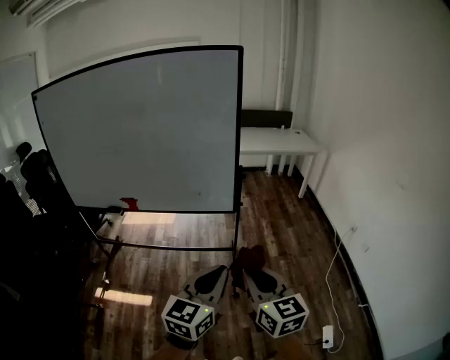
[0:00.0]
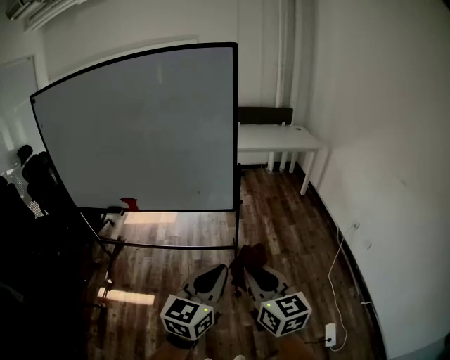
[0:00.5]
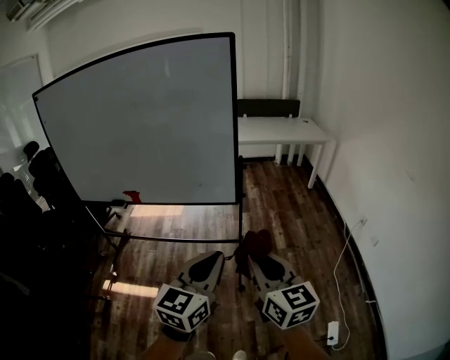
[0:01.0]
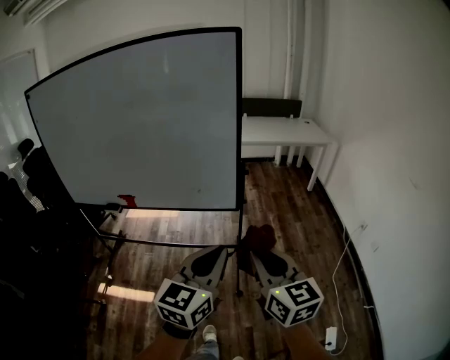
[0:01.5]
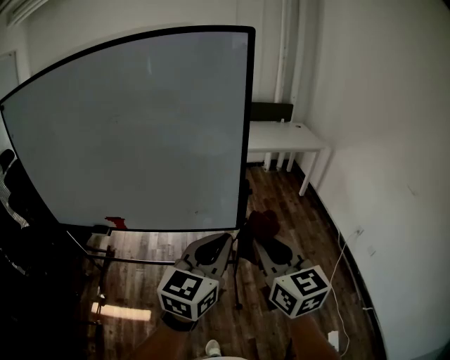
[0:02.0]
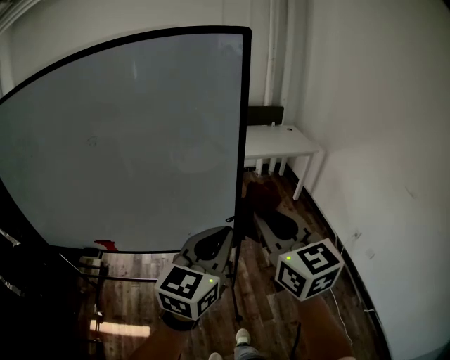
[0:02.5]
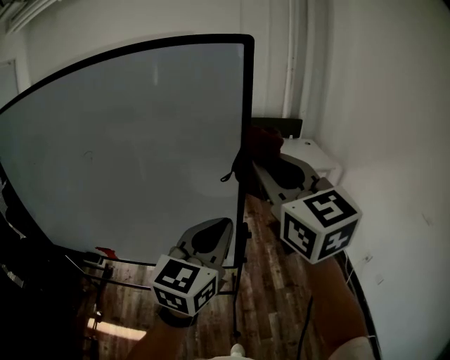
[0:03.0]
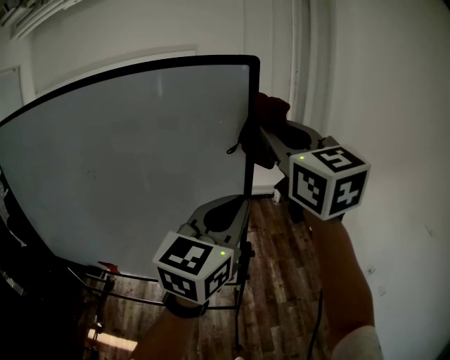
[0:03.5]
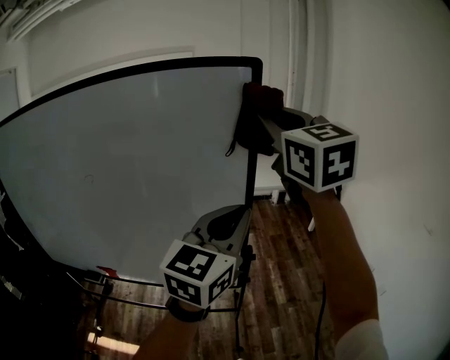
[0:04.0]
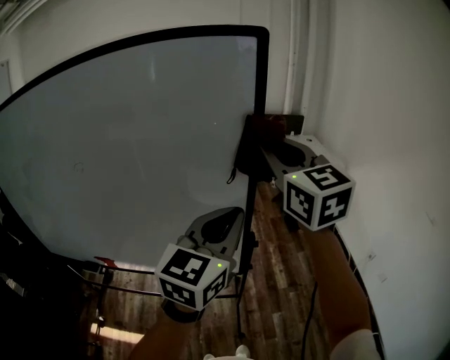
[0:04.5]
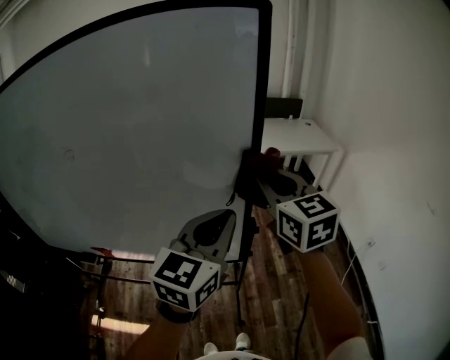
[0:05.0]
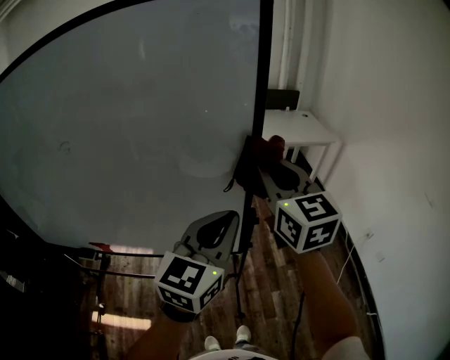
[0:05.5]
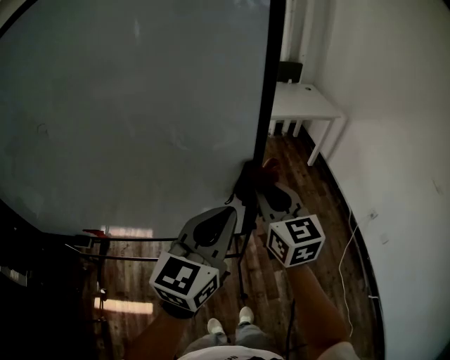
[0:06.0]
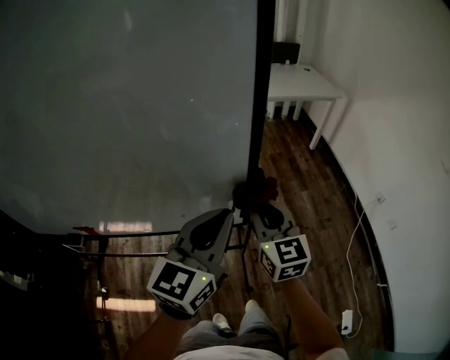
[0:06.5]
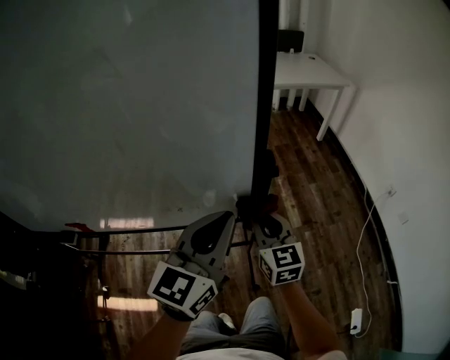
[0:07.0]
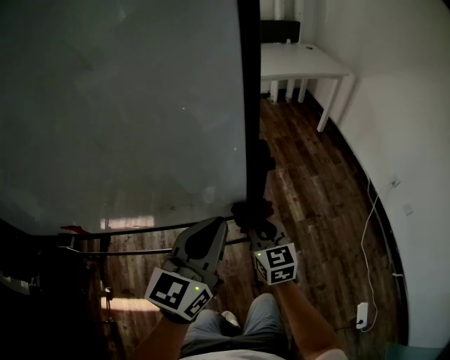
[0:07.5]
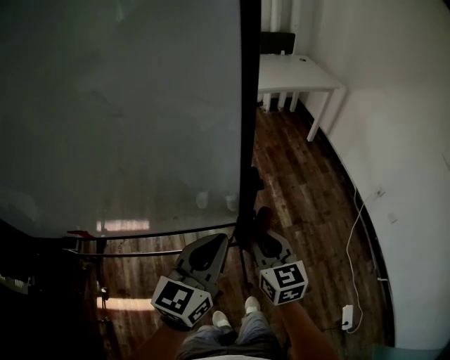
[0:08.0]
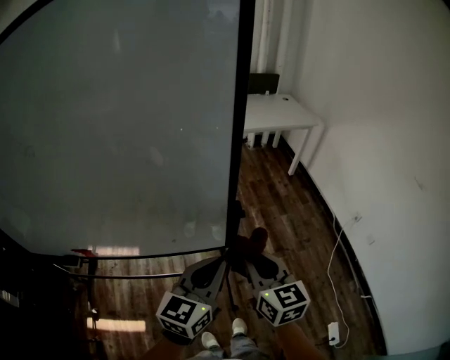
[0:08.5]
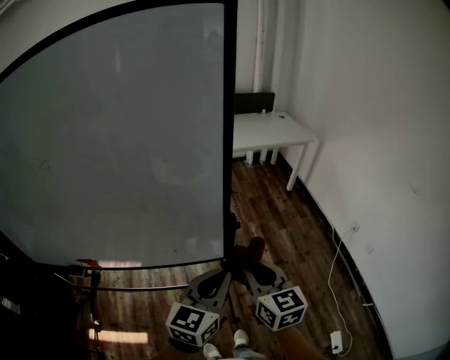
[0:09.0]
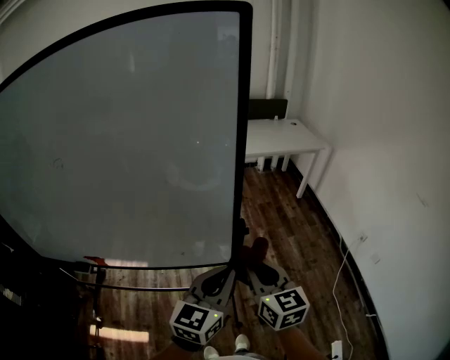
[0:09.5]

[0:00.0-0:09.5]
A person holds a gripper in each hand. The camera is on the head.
0:00.0 to 0:02.0: The grippers both shift forward by some 25 cm.
0:02.0 to 0:04.0: The right gripper is displaced forward and upward by some 40 cm, and turns by approximately 20 degrees. The left gripper shifts approximately 30 cm forward and upward.
0:04.0 to 0:05.5: The right gripper shifts some 20 cm downward. The left gripper is displaced downward by approximately 10 cm.
0:05.5 to 0:07.5: The right gripper moves downward, about 50 cm. The left gripper moves downward, roughly 25 cm.
0:07.5 to 0:09.5: The right gripper is displaced upward and backward by roughly 30 cm. Meanwhile the left gripper heads upward and backward, covering roughly 20 cm.

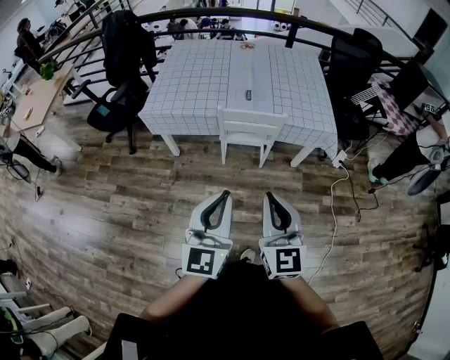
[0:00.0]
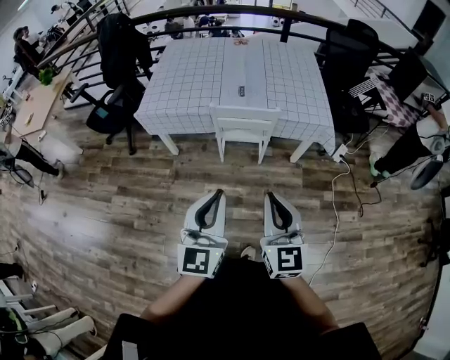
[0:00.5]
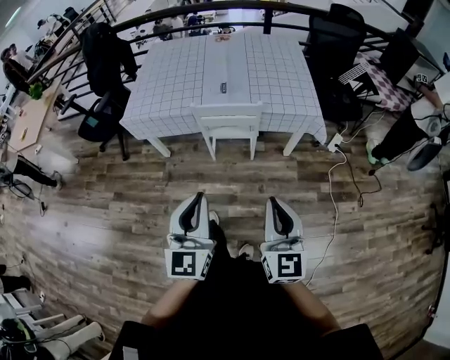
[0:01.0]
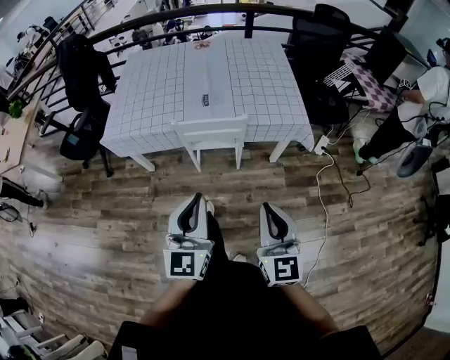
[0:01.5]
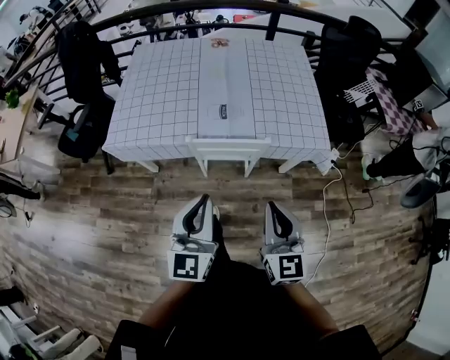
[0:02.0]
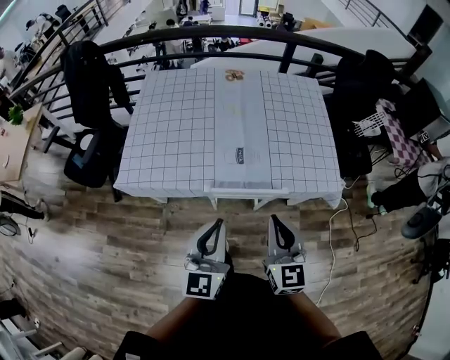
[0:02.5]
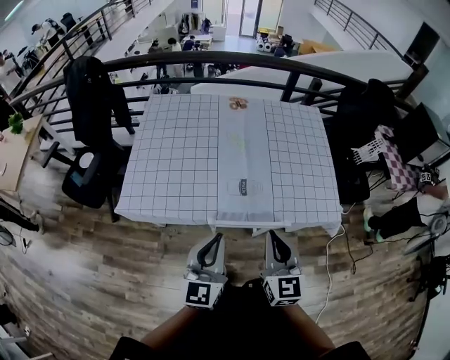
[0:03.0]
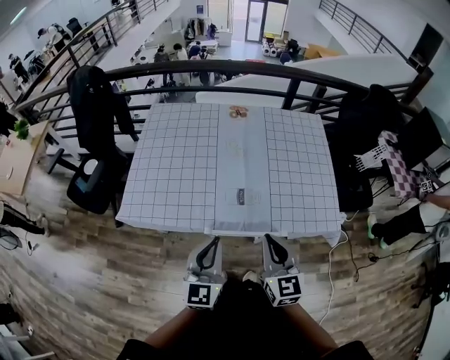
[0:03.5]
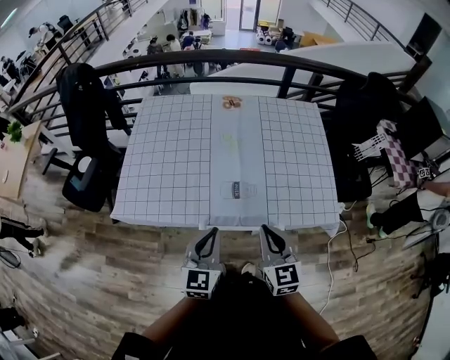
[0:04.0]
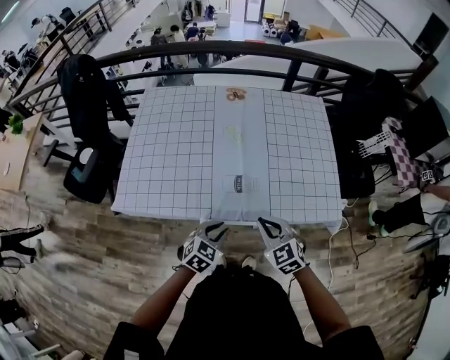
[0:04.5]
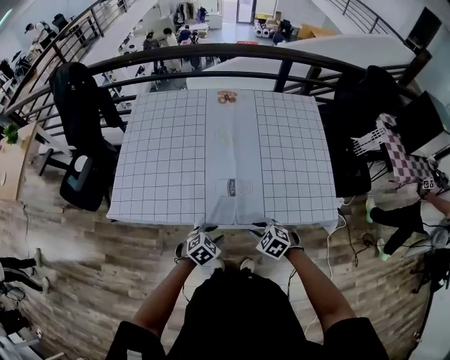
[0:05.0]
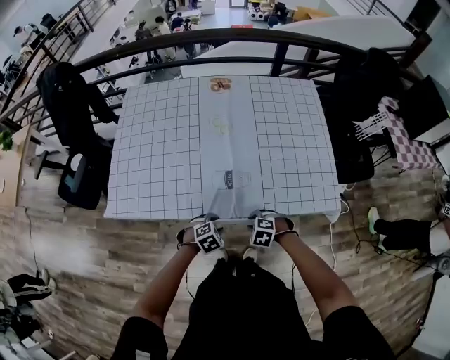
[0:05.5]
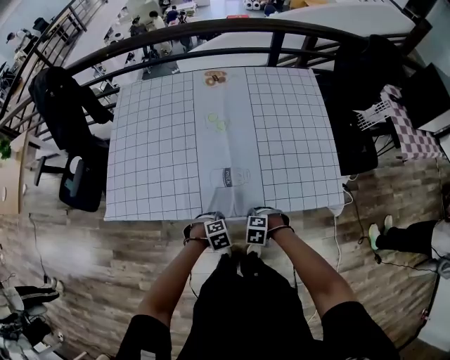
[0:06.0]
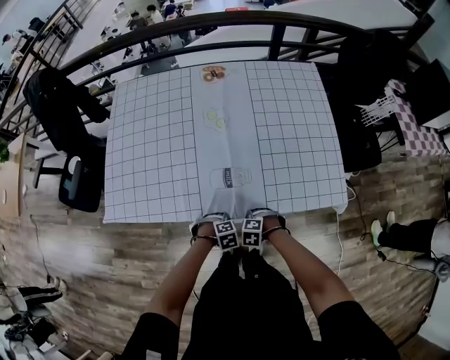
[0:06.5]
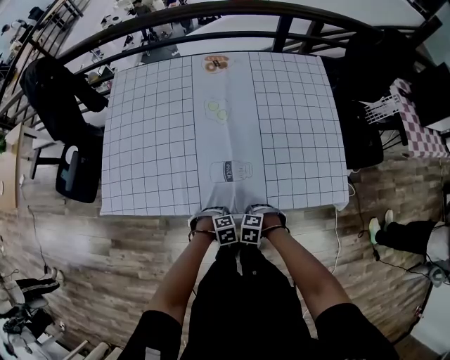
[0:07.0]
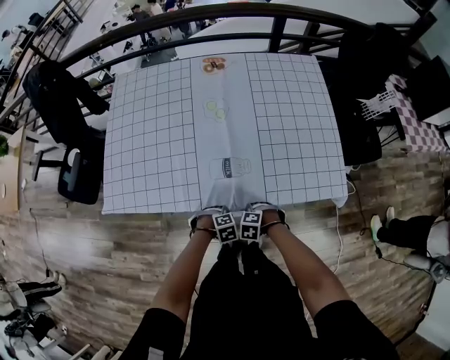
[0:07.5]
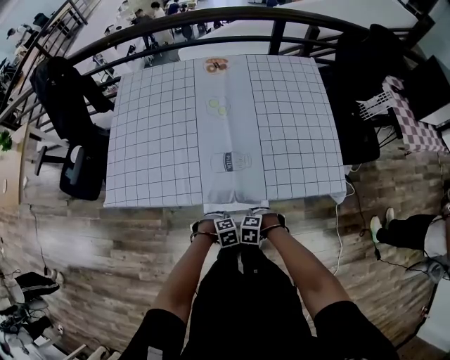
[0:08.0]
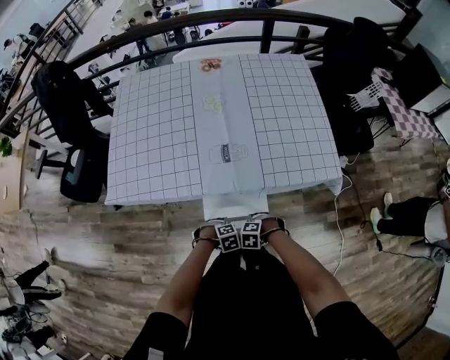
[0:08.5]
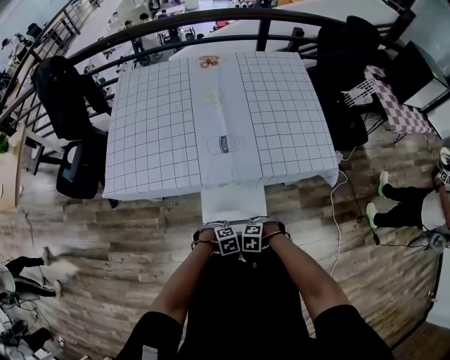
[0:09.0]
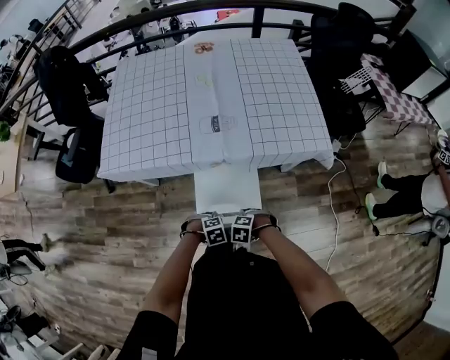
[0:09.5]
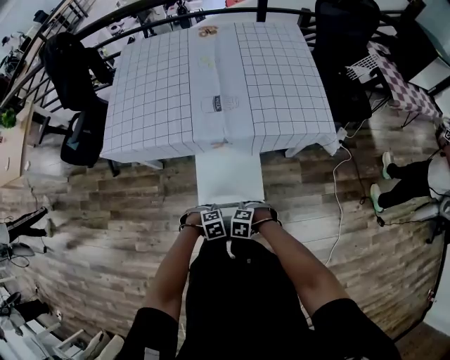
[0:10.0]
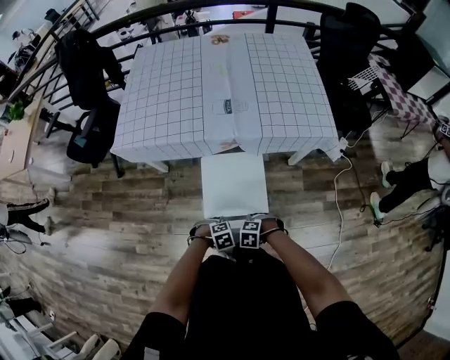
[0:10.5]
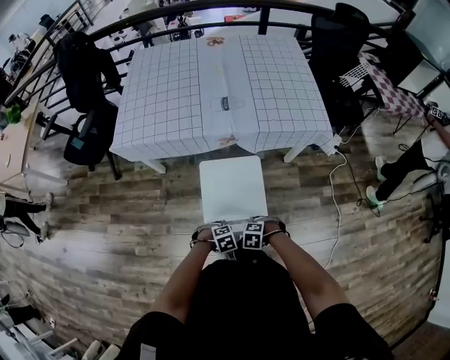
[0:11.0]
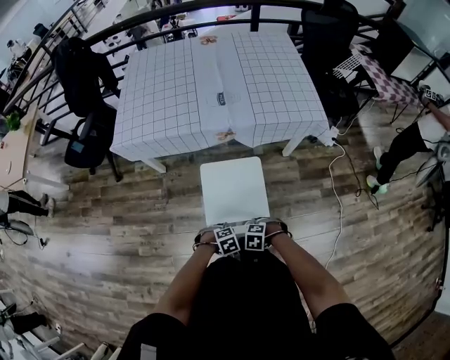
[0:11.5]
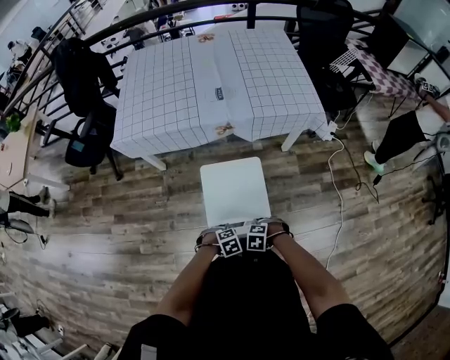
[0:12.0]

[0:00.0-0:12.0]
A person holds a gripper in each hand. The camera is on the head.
0:00.0 to 0:02.0: Both grippers move forward, approximately 25 cm.
0:02.0 to 0:04.0: Both grippers travel together forward, approximately 25 cm.
0:04.0 to 0:06.0: The grippers both shift downward by about 30 cm. The right gripper tips its fingers downward by about 60 degrees. Meanwhile the left gripper tilts its fingers some 60 degrees downward, and opens its fingers.
0:06.0 to 0:08.0: The right gripper shifts by approximately 10 cm, while the left gripper changes place by about 10 cm.
0:08.0 to 0:10.0: The left gripper shifts by approximately 25 cm; the right gripper shifts by some 25 cm.
0:10.0 to 0:12.0: The right gripper changes place by roughly 20 cm; the left gripper moves some 20 cm.

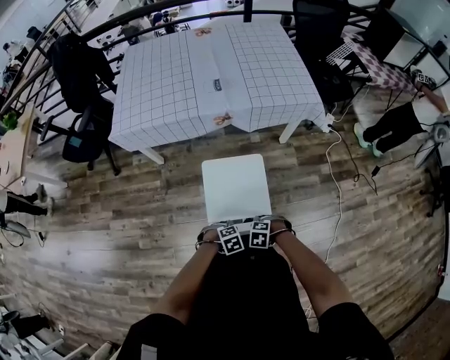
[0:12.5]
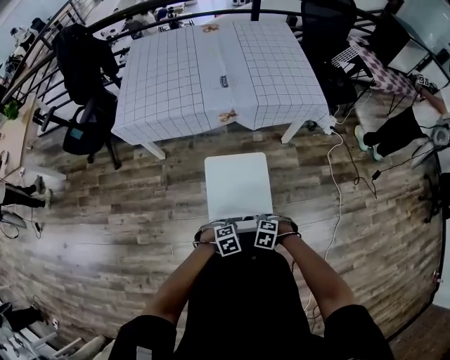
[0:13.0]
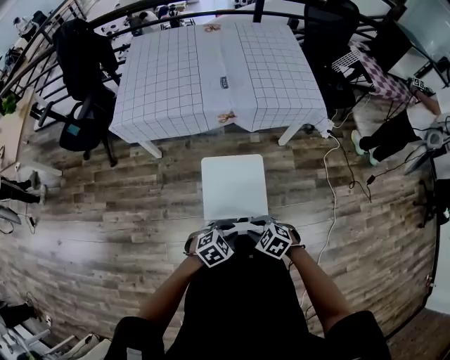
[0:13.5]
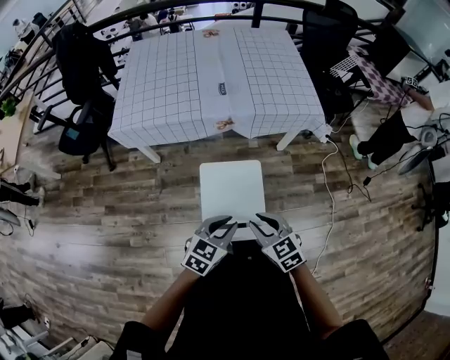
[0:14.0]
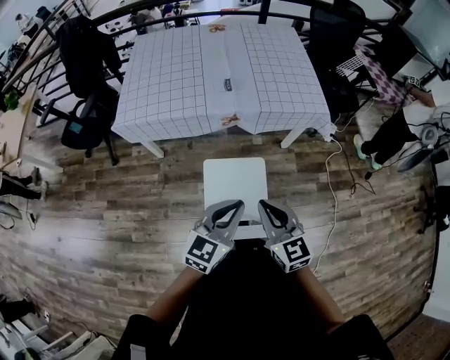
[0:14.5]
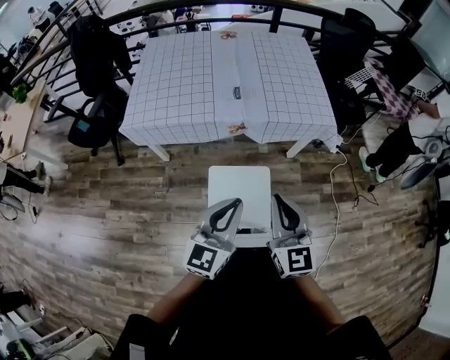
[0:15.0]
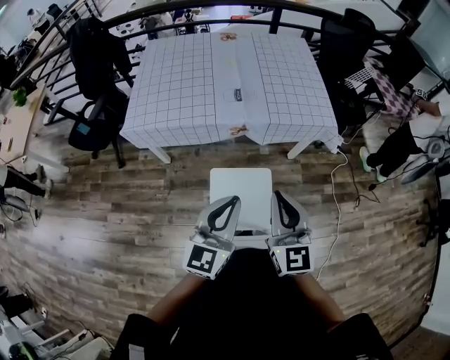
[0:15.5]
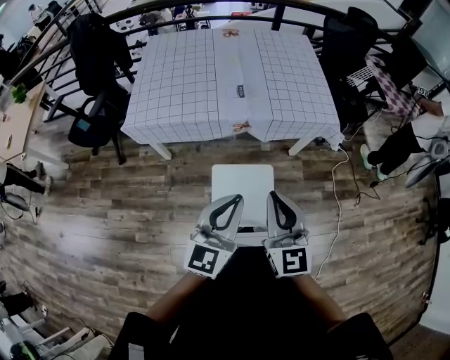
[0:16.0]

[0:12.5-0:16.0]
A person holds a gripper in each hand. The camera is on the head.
0:12.5 to 0:14.5: Both grippers move upward, about 35 cm. The left gripper points its fingers approximately 60 degrees further upward. The right gripper points its fingers about 60 degrees further upward, and closes.
0:14.5 to 0:16.0: The right gripper shifts roughly 10 cm upward and forward; the left gripper heads upward, covering about 5 cm.

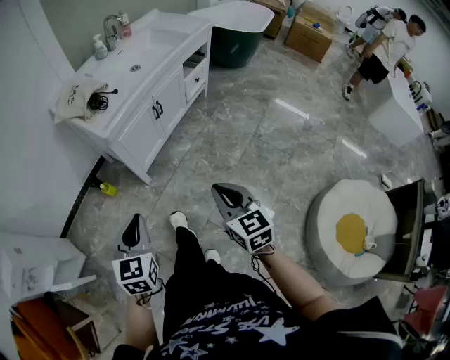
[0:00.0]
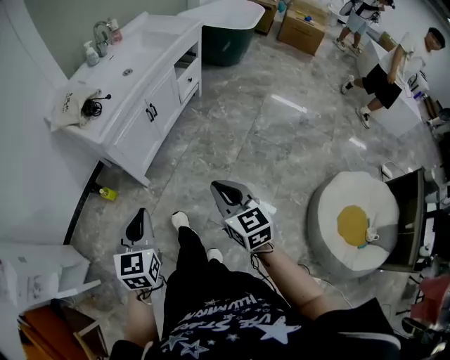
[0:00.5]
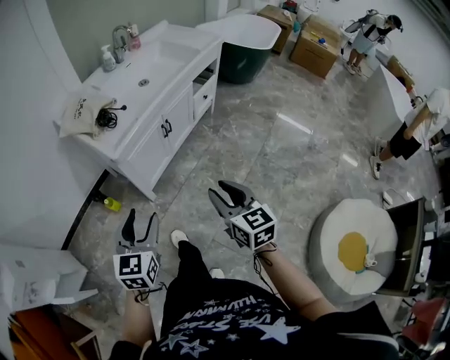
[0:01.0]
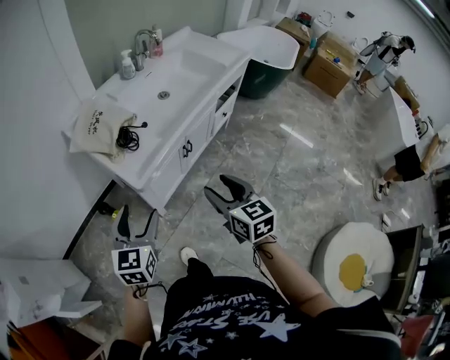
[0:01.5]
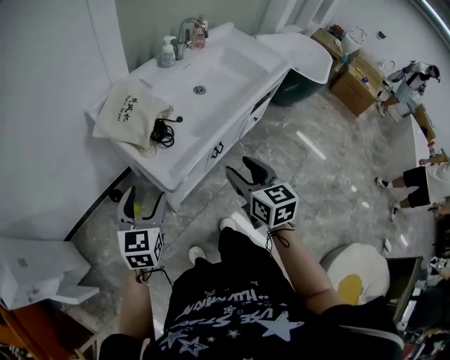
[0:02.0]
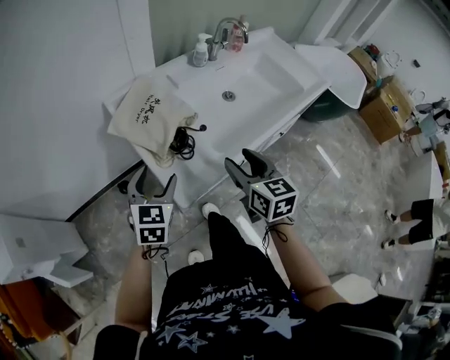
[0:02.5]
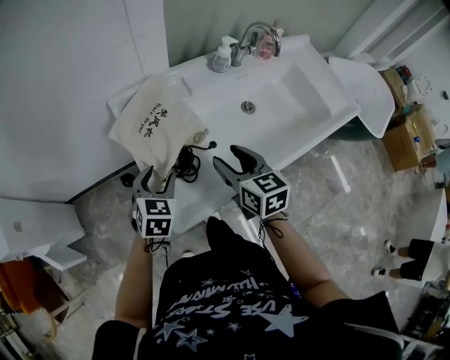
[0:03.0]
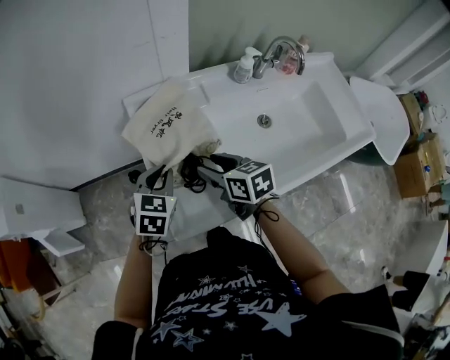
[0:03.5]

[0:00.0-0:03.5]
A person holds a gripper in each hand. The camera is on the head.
0:00.0 to 0:02.0: The right gripper travels forward by roughly 35 cm, and opens up. The left gripper heads forward and to the left, covering approximately 35 cm, and opens its fingers.
0:02.0 to 0:03.5: The left gripper changes place by approximately 25 cm, rotates roughly 30 degrees, and closes. Meanwhile the right gripper moves approximately 30 cm, and swivels about 50 degrees.
